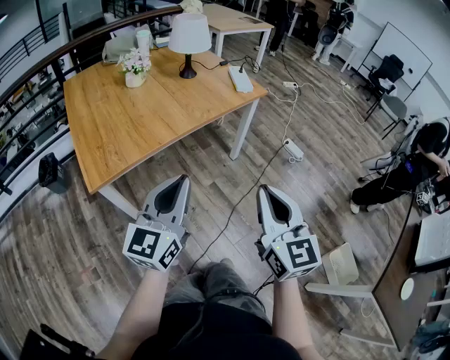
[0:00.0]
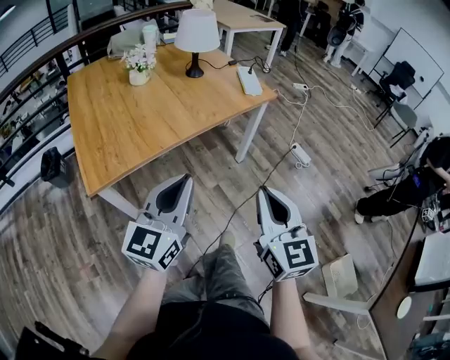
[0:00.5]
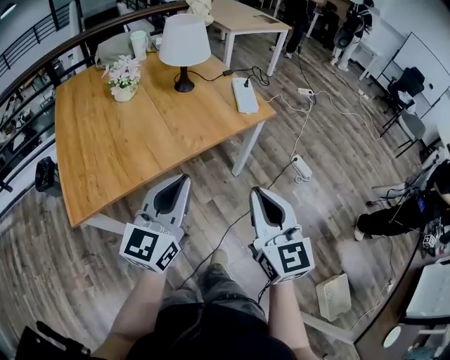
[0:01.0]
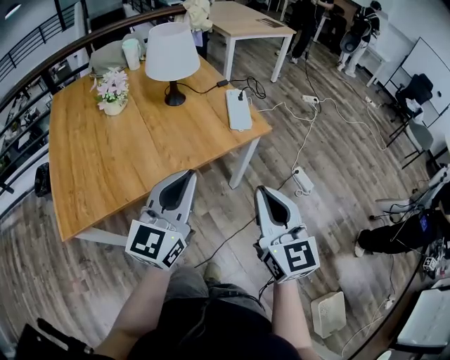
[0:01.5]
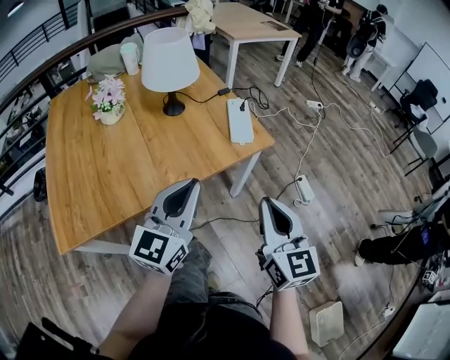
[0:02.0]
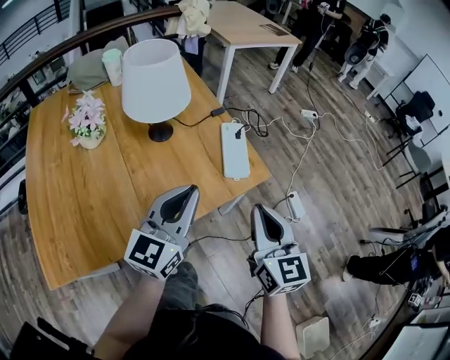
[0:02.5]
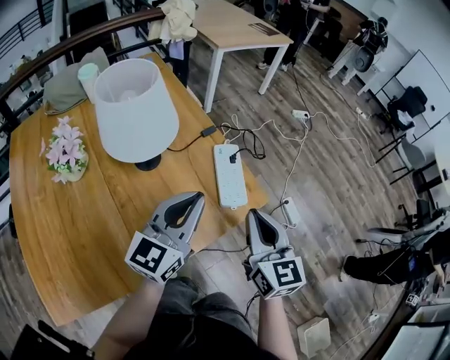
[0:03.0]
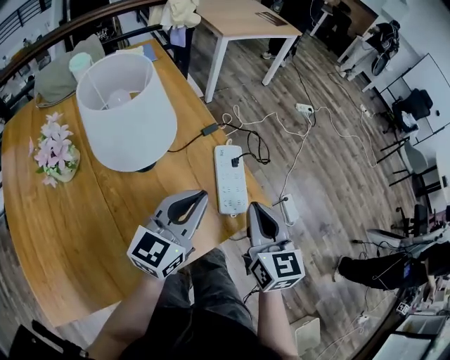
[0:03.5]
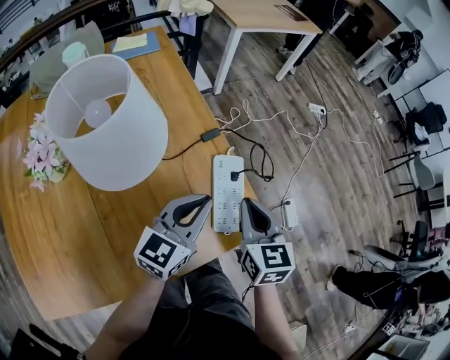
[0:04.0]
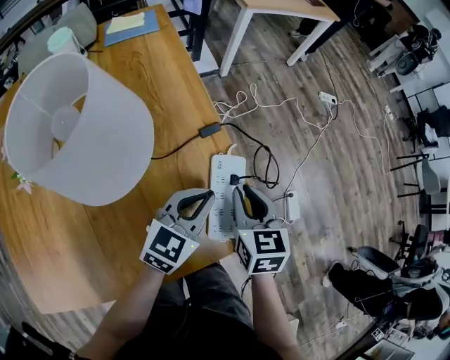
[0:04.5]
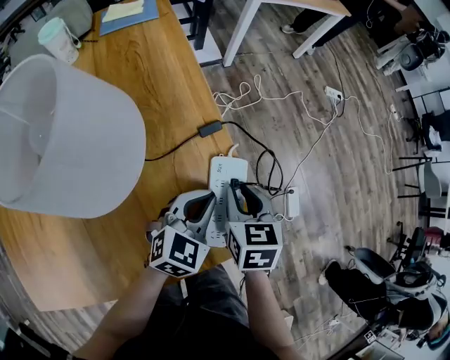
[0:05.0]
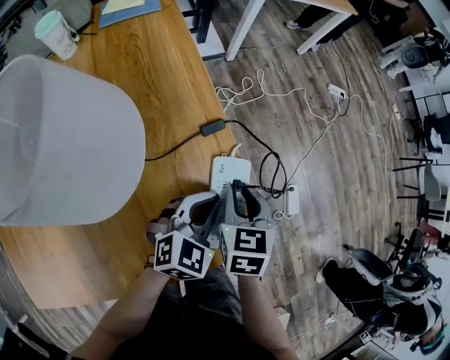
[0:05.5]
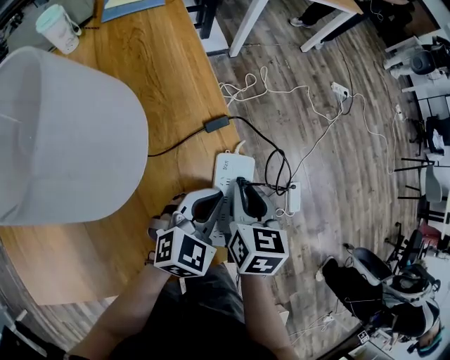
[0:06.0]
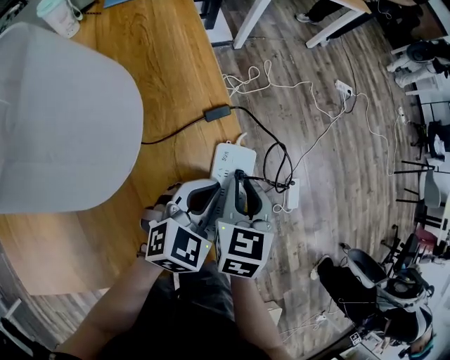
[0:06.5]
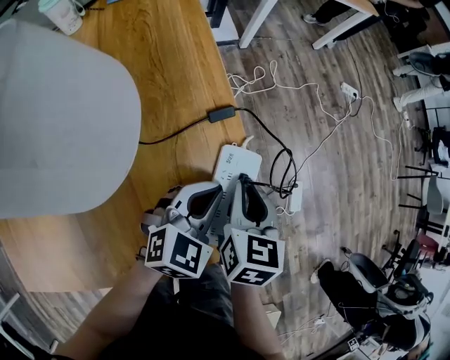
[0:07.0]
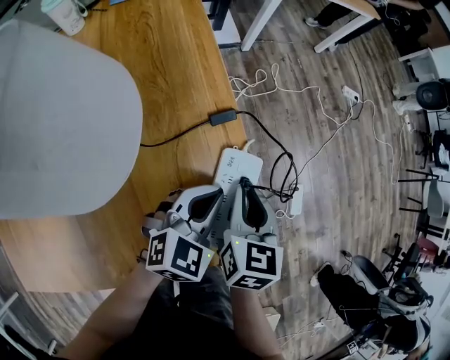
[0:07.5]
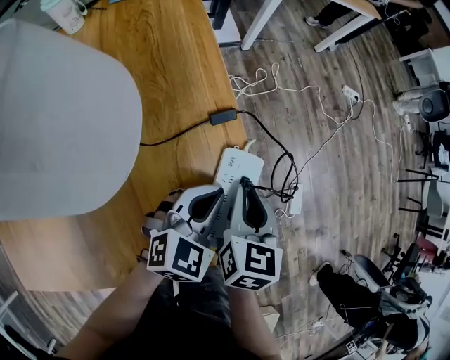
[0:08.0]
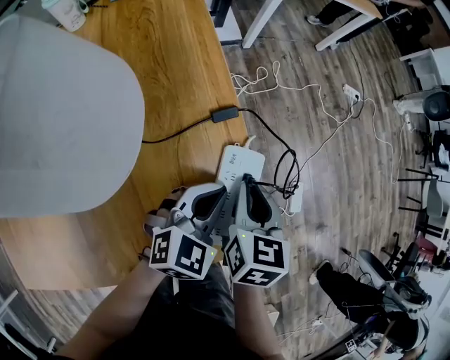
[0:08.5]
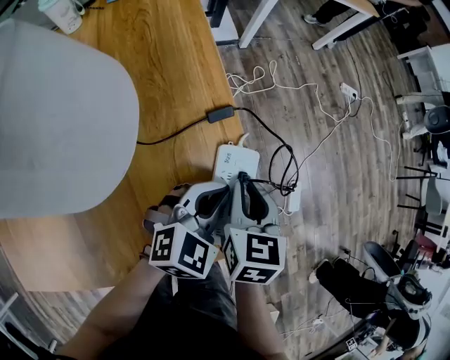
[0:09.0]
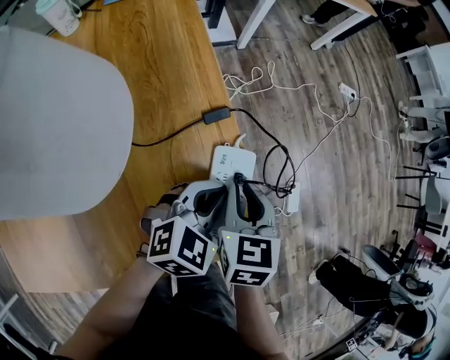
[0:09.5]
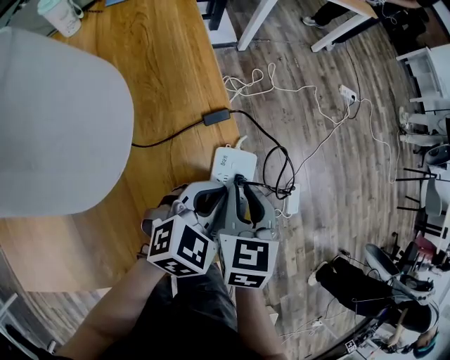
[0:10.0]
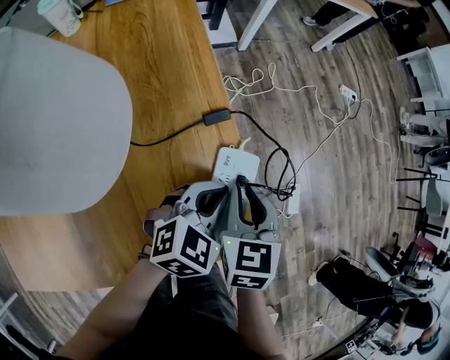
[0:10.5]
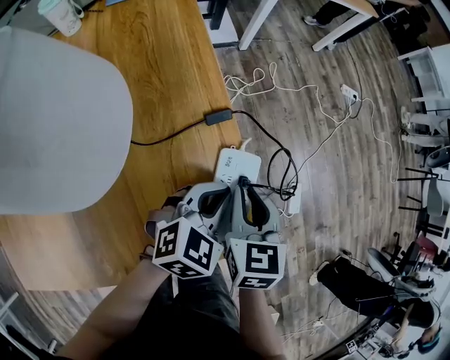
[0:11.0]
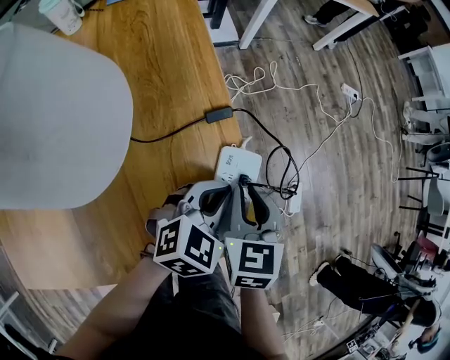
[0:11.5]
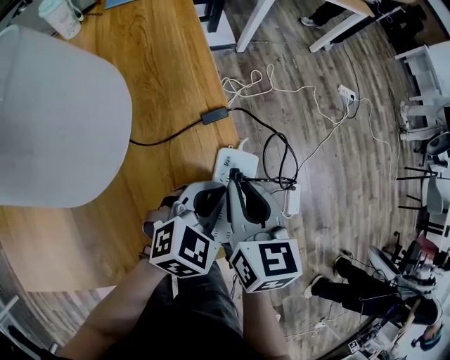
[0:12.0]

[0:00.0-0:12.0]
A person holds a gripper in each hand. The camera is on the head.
0:00.0 to 0:02.0: The grippers both shift forward by roughly 30 cm.
0:02.0 to 0:04.0: Both grippers move forward, approximately 35 cm. The right gripper rotates about 20 degrees.
0:04.0 to 0:06.0: Both grippers travel together downward and forward, approximately 10 cm. The left gripper rotates some 30 degrees.
0:06.0 to 0:10.0: The grippers make only small movements.

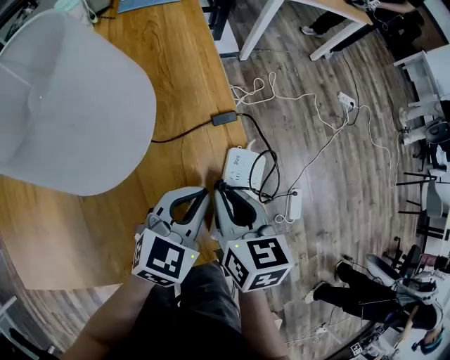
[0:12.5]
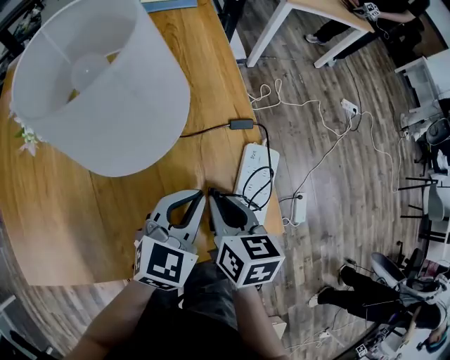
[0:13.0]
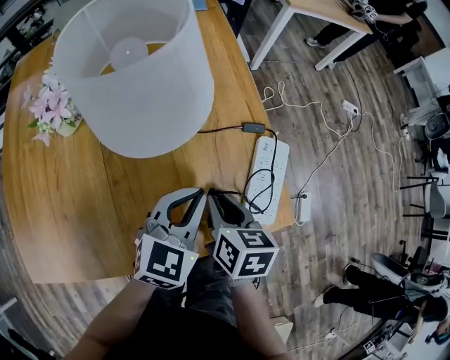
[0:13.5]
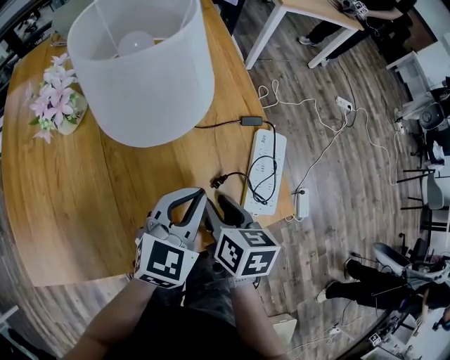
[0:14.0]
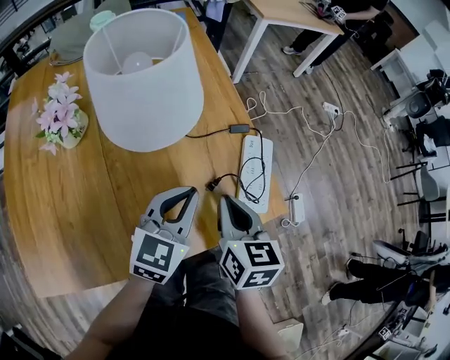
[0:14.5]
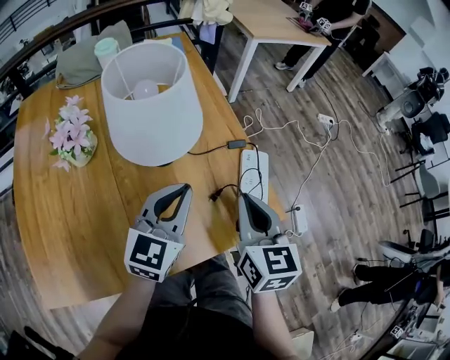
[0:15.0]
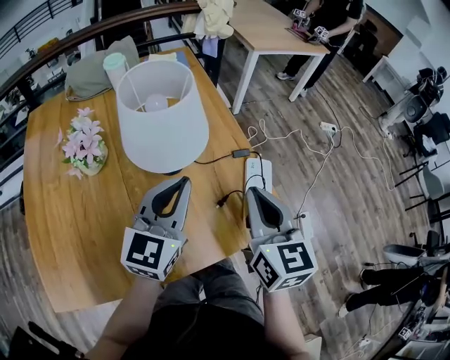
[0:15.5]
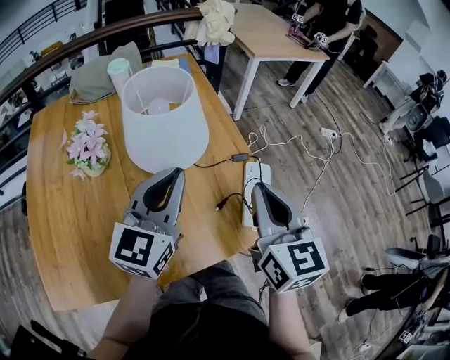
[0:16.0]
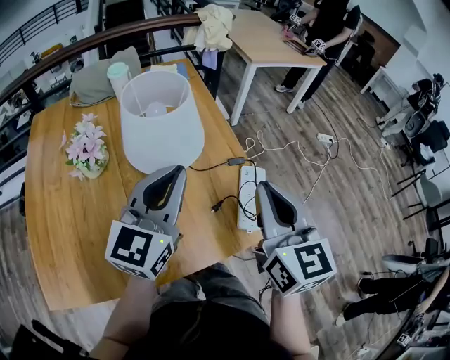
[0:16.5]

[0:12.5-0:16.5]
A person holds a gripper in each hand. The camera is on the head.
0:12.5 to 0:14.5: The left gripper heads to the left and backward, covering roughly 10 cm. Meanwhile the right gripper is displaced backward and to the left by approximately 10 cm, and opens, then closes again.
0:14.5 to 0:16.5: Both grippers travel together upward, approximately 20 cm. The left gripper changes its angle by some 20 degrees. Meanwhile the right gripper swivels some 30 degrees.

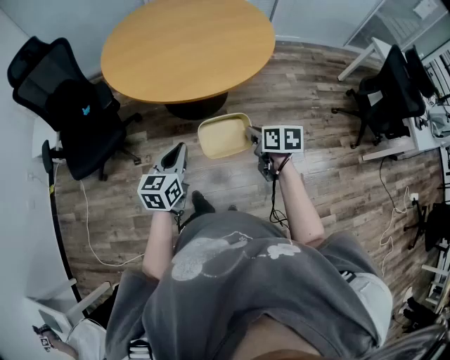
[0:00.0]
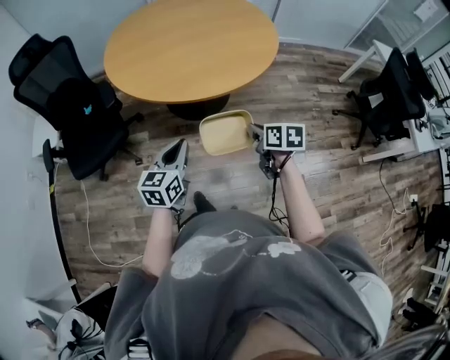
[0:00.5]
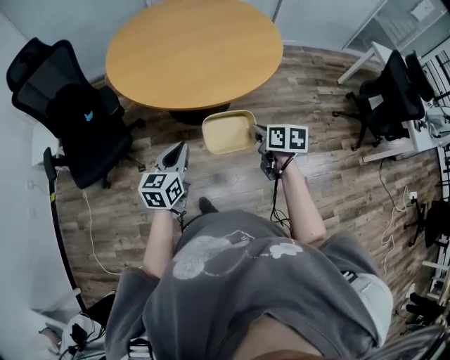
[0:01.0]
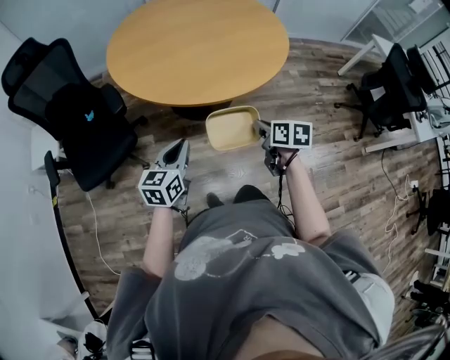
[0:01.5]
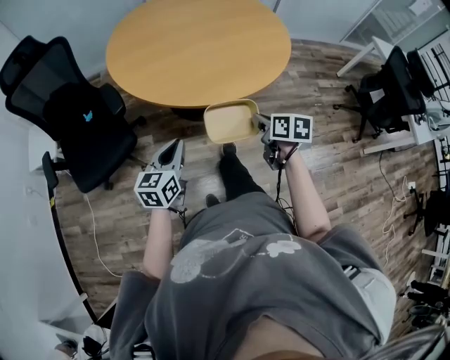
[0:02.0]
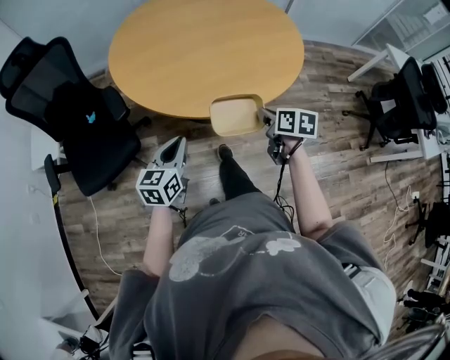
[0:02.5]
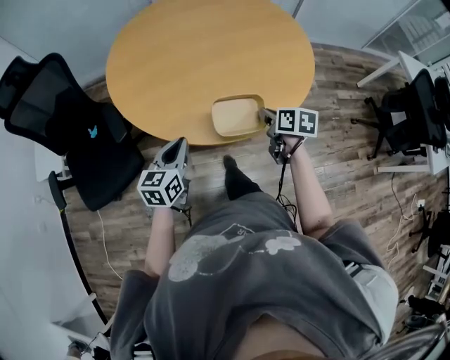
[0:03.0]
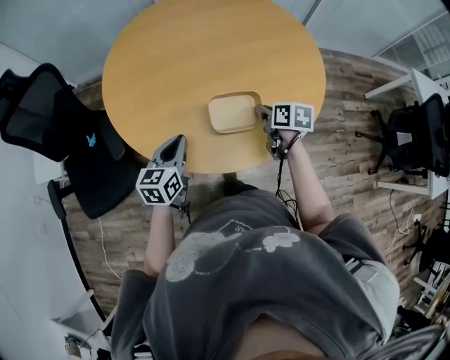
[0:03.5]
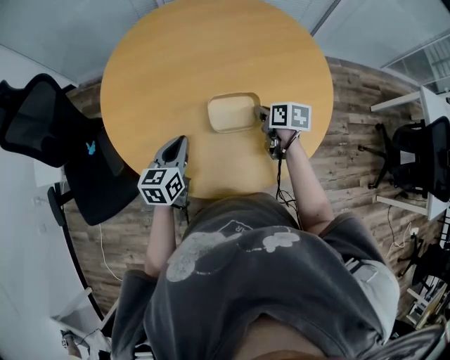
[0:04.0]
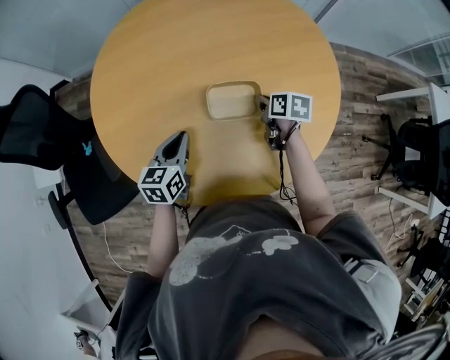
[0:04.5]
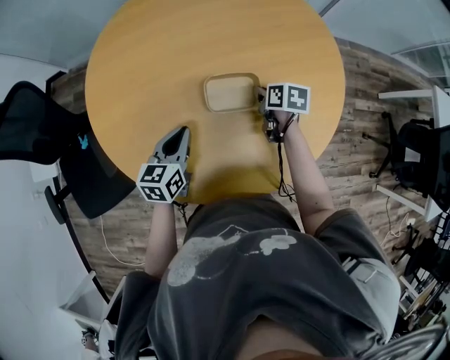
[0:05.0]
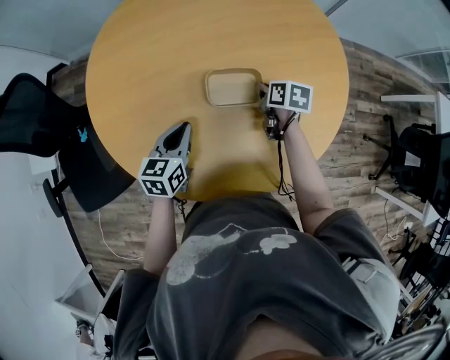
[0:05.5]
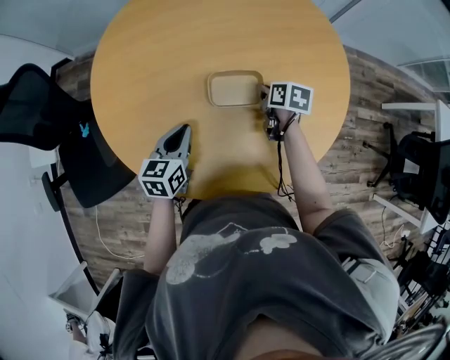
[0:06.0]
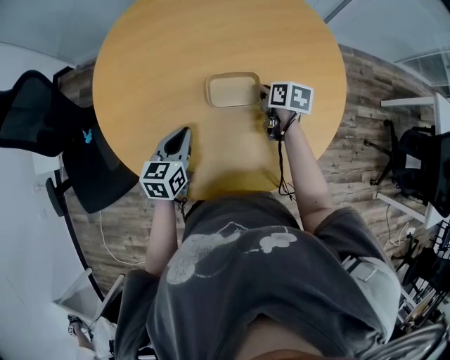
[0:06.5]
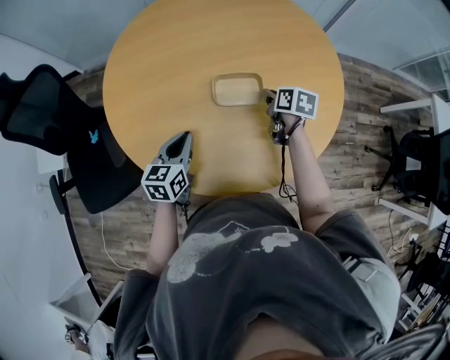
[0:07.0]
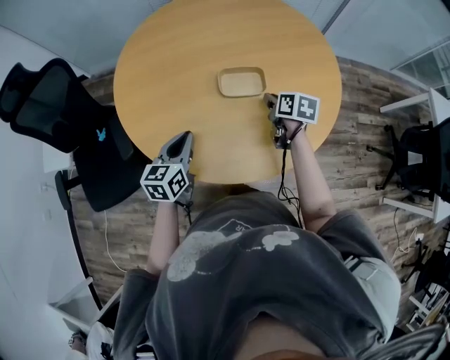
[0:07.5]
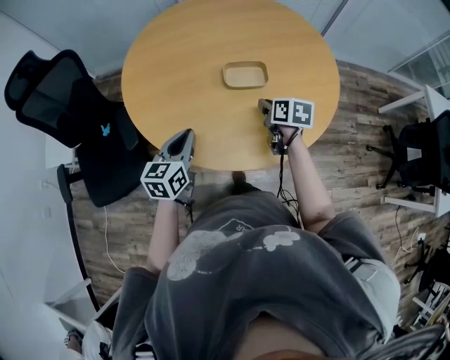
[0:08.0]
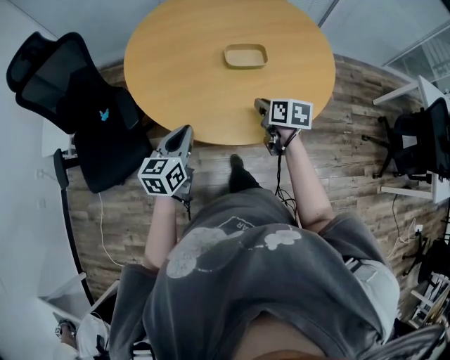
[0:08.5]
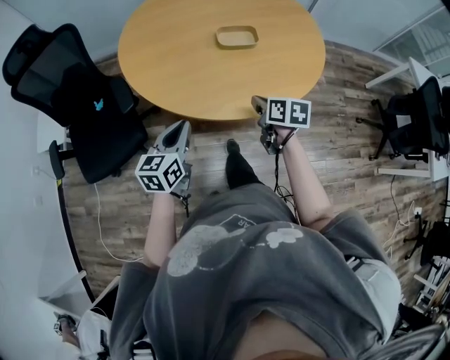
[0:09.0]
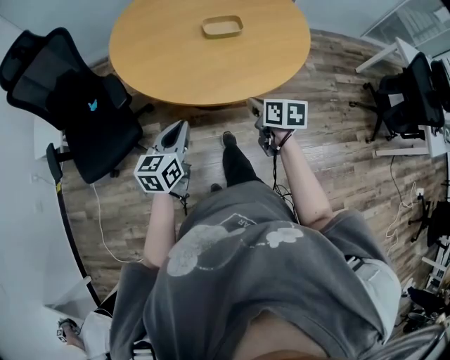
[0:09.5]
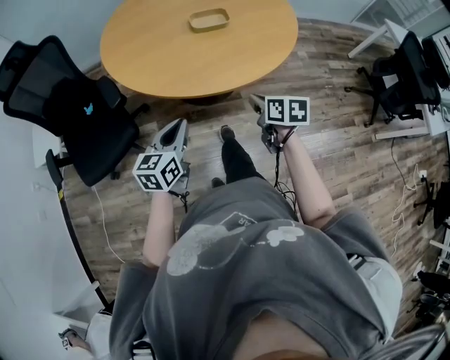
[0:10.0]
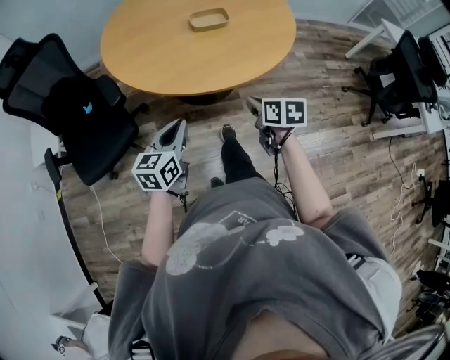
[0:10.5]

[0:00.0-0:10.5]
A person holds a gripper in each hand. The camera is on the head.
0:00.0 to 0:02.0: The two grippers go about 15 cm to the left and forward.
0:02.0 to 0:04.0: The two grippers travel together, forward, approximately 50 cm.
0:04.0 to 0:06.5: The left gripper goes roughly 5 cm forward. The right gripper goes approximately 10 cm forward.
0:06.5 to 0:08.5: The grippers both shift backward by some 30 cm.
0:08.5 to 0:10.5: The two grippers go approximately 25 cm backward.

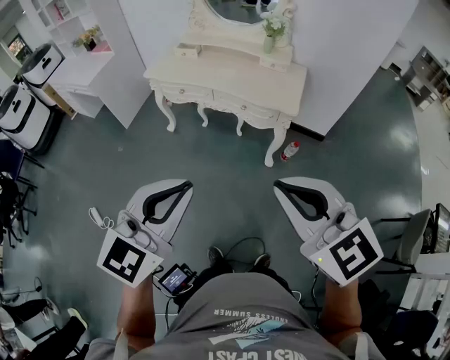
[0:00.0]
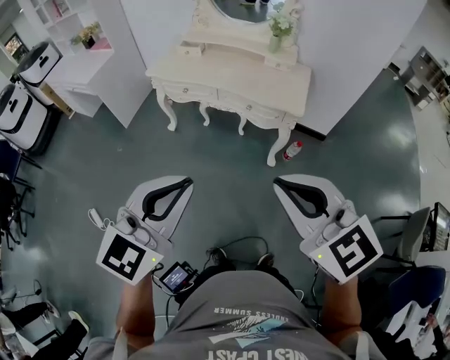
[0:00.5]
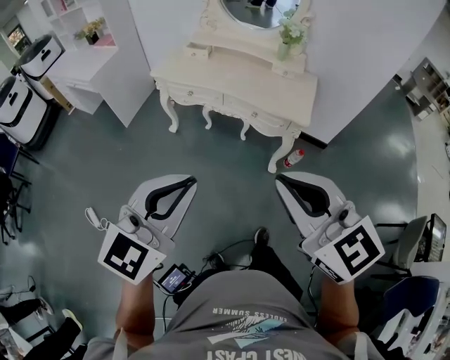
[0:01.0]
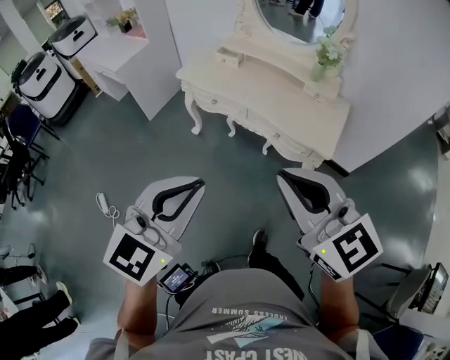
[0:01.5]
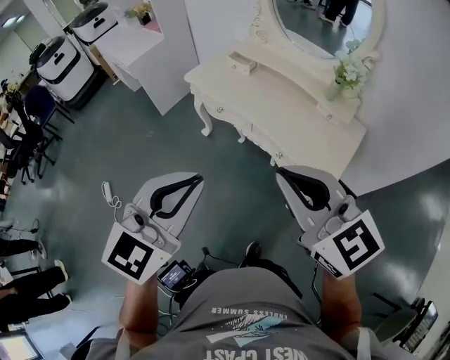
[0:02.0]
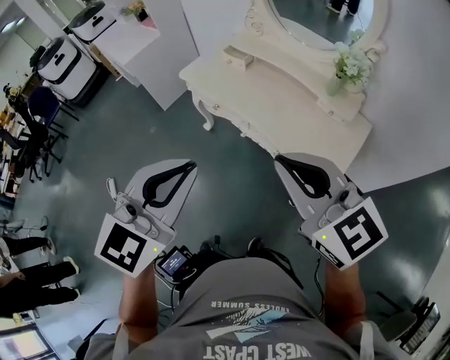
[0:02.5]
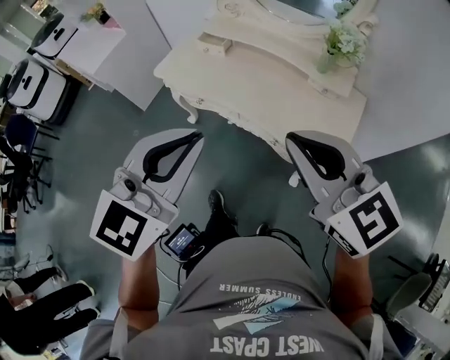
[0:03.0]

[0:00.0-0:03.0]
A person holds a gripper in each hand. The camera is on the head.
0:00.0 to 0:01.5: Both grippers move forward, about 20 cm.
0:01.5 to 0:03.0: The two grippers go some 25 cm forward and to the right.
